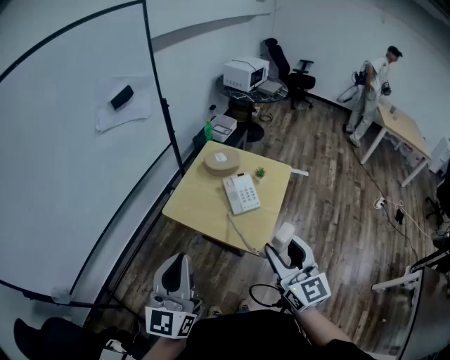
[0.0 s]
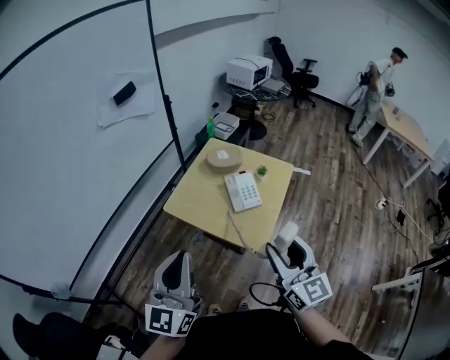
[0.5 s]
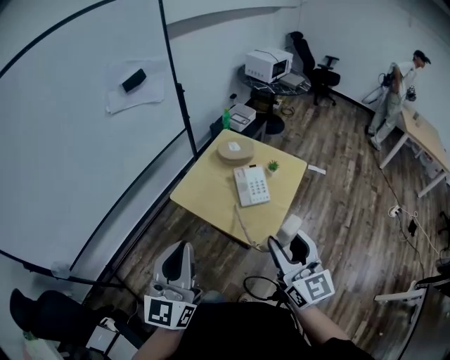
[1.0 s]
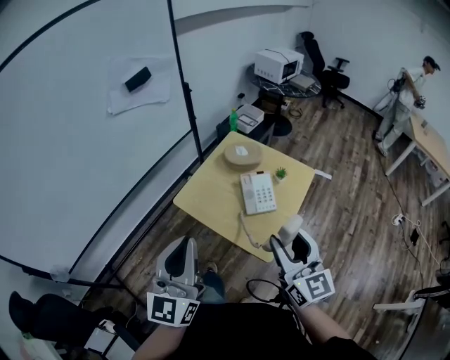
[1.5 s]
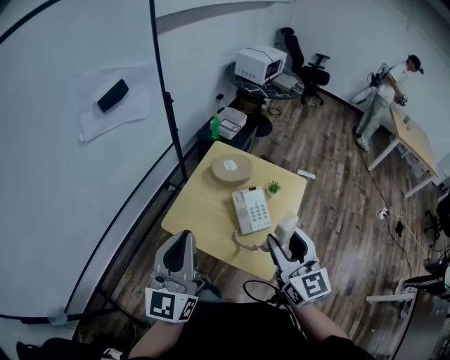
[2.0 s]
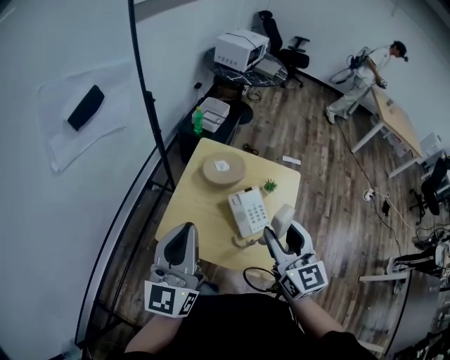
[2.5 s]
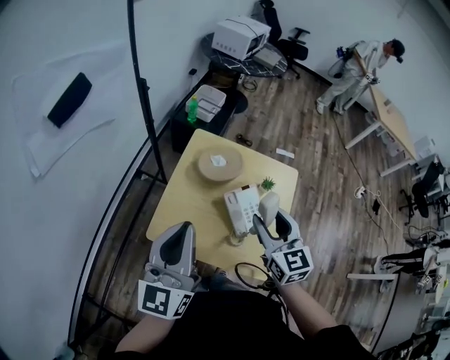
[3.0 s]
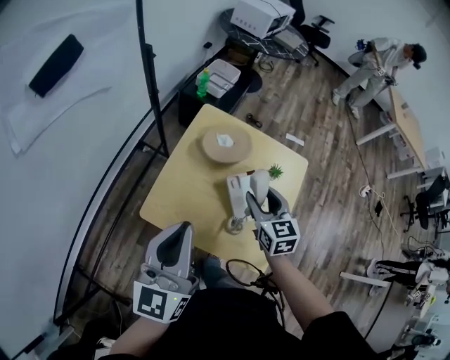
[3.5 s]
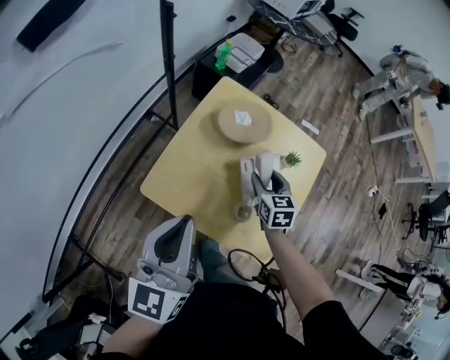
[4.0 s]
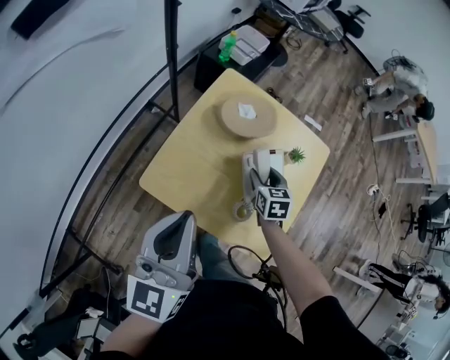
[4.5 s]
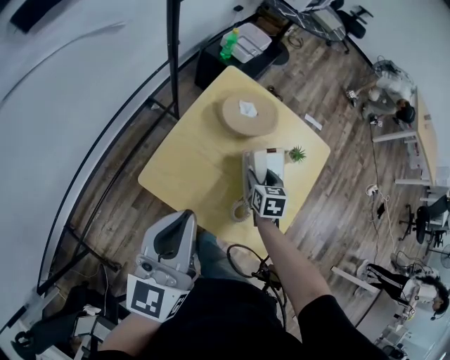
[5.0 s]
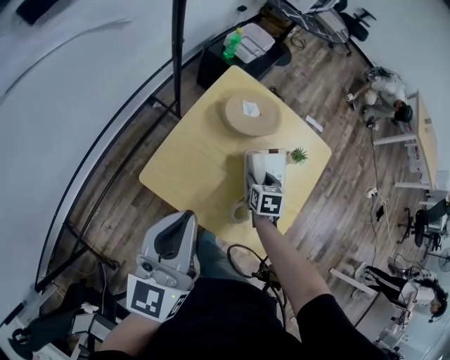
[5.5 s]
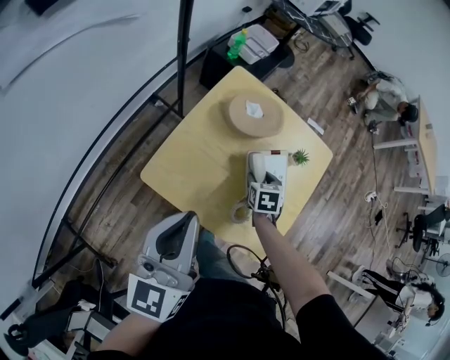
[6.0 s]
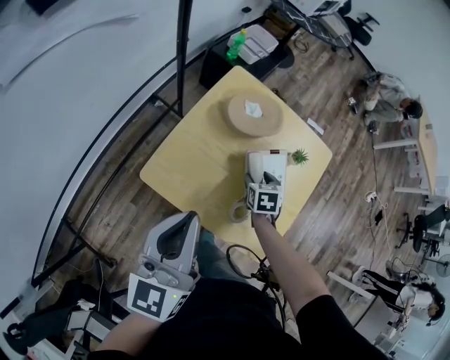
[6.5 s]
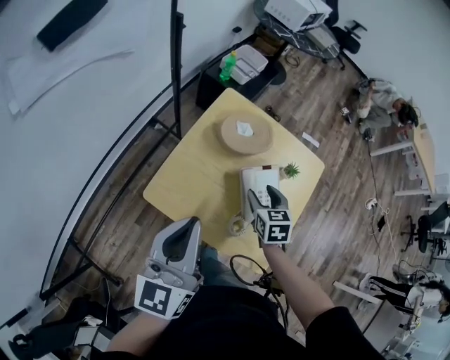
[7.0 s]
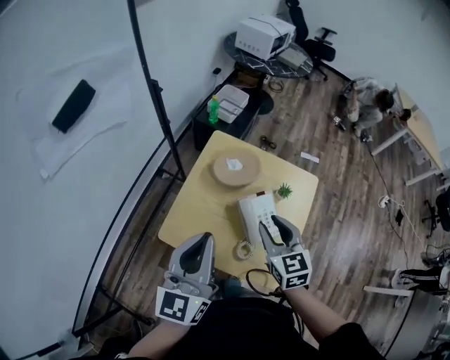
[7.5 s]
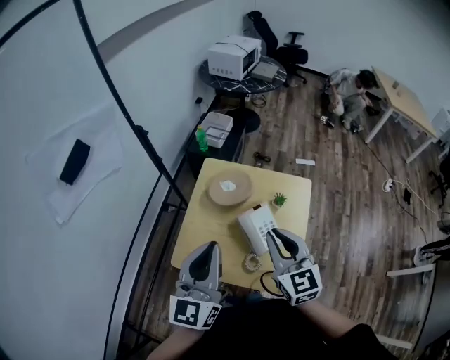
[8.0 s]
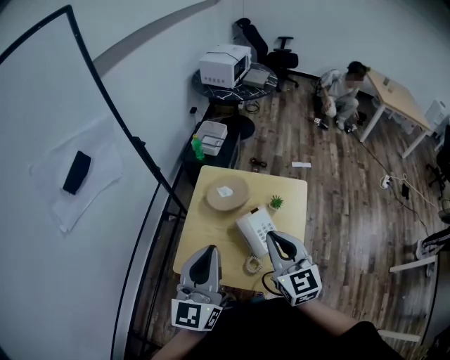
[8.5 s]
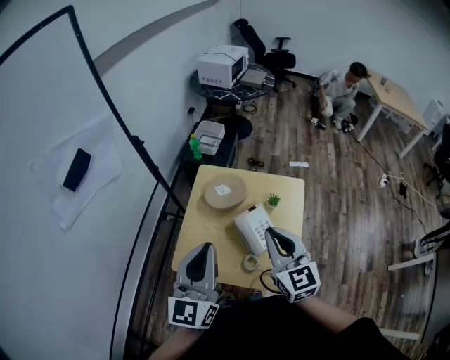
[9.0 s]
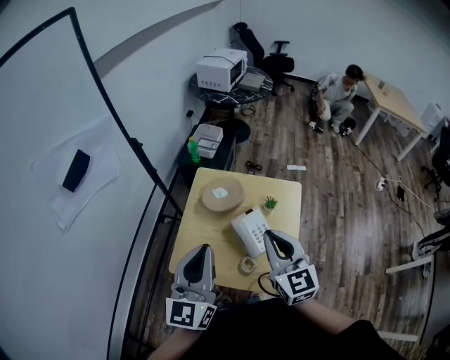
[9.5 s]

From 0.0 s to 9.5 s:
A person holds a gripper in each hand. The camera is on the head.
From 0.0 s to 2.0 s: The grippers both shift forward by some 20 cm.
From 2.0 s to 4.0 s: The left gripper heads downward and forward, covering approximately 20 cm; the right gripper travels downward and forward by about 40 cm, and tips its fingers downward by some 40 degrees.
From 4.0 s to 5.5 s: The right gripper travels downward by about 10 cm.
From 5.5 s to 7.5 s: The left gripper moves upward and to the right, some 10 cm. The right gripper heads upward, covering roughly 25 cm, and rotates approximately 30 degrees.
From 7.5 s to 9.5 s: The left gripper travels upward by some 5 cm. Meanwhile the right gripper travels upward by about 10 cm, turns by about 20 degrees, and closes its fingers.

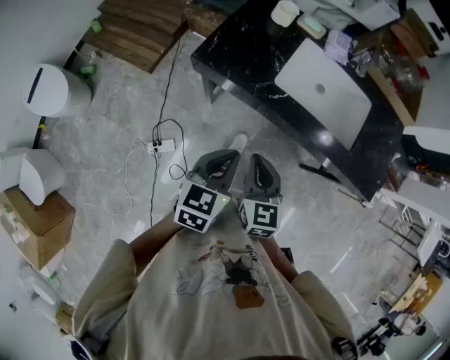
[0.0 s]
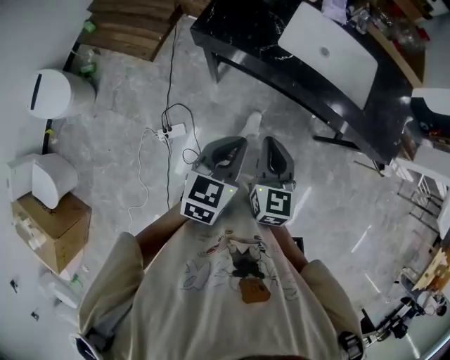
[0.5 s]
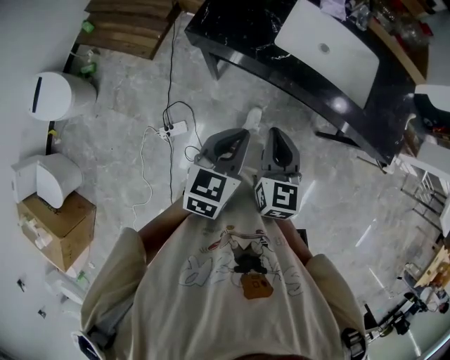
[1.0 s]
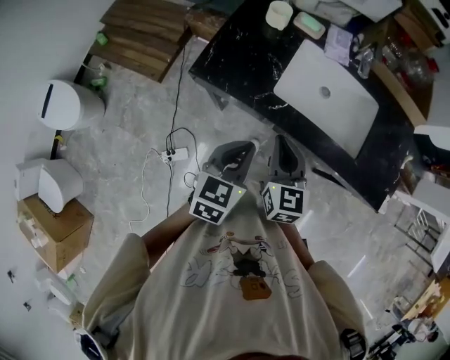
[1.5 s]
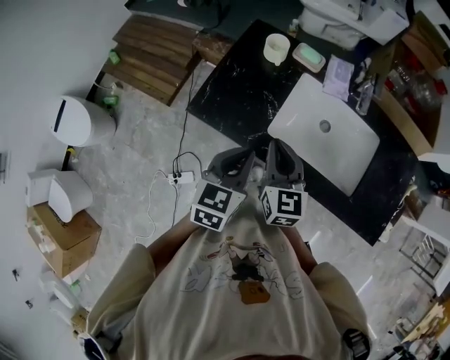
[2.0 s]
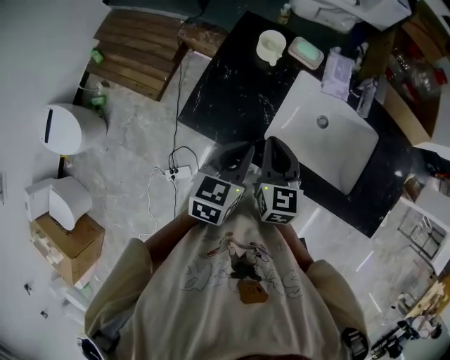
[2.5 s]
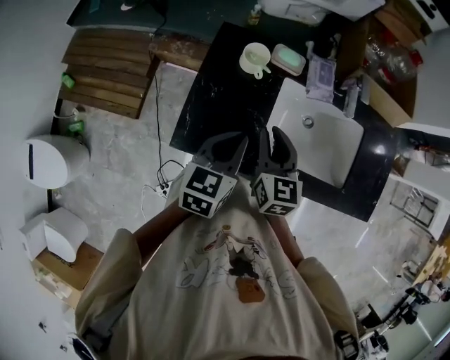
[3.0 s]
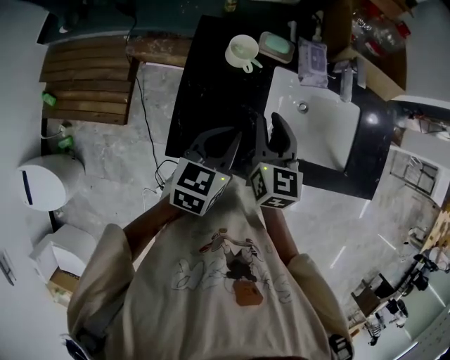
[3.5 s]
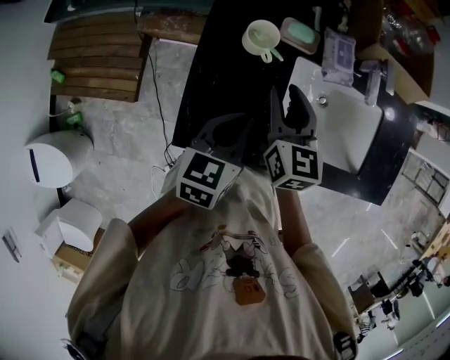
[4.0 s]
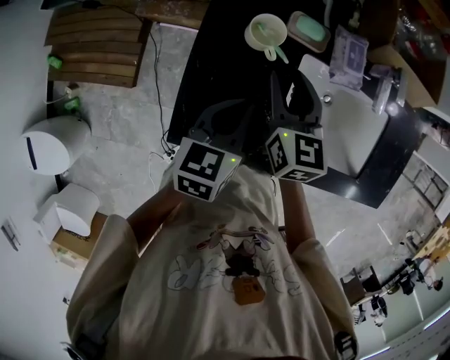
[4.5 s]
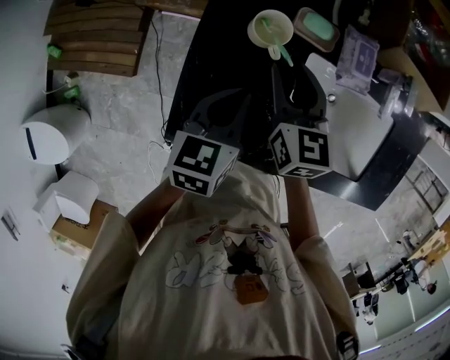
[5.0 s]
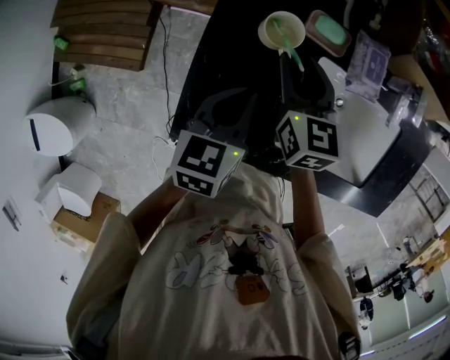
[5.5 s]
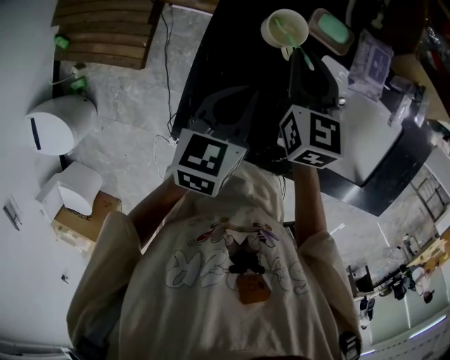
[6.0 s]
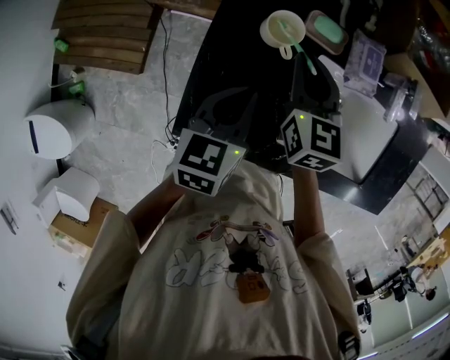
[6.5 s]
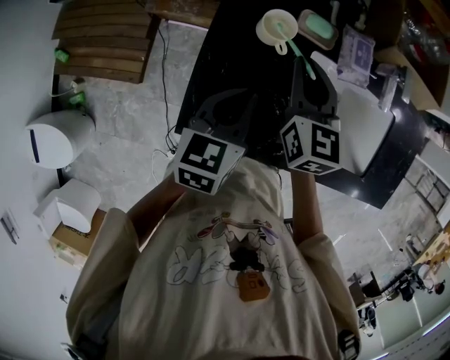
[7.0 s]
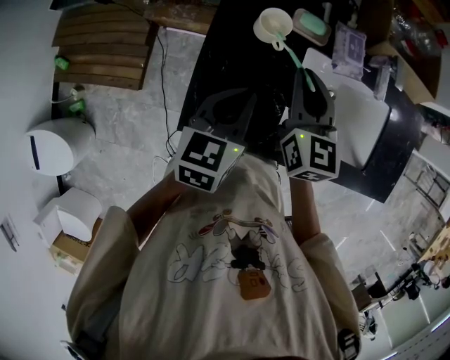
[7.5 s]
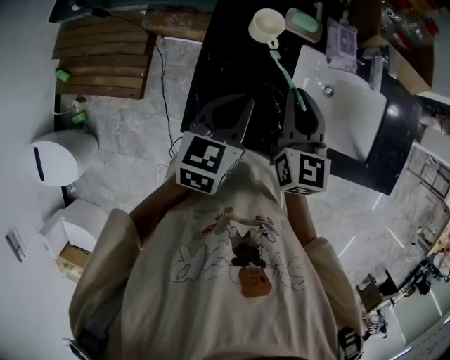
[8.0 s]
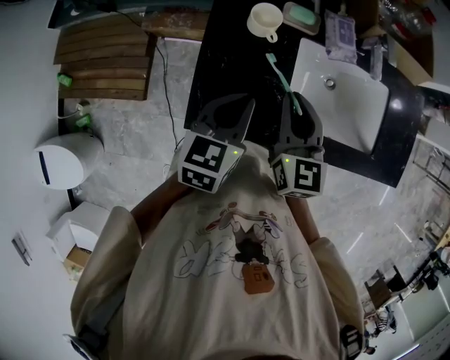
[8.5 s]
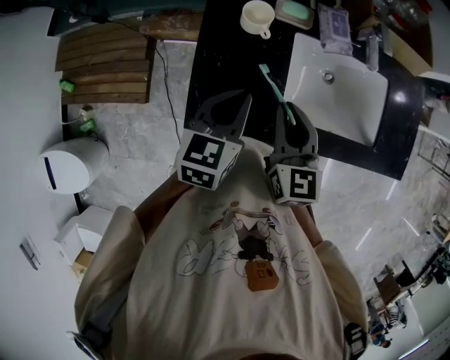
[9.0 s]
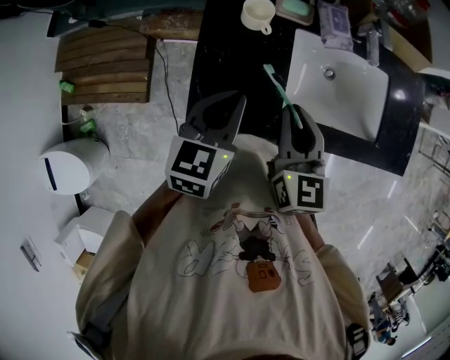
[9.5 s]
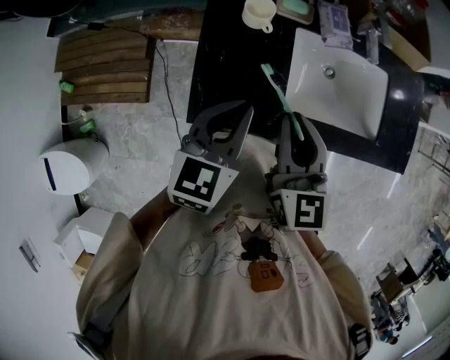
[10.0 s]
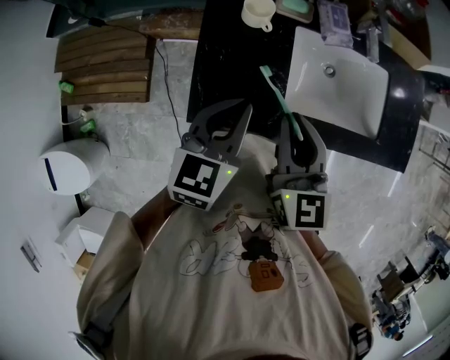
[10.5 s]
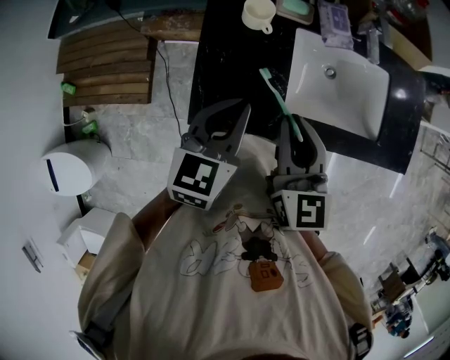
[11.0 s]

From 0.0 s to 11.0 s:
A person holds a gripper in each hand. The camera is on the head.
From 0.0 s to 2.0 s: The grippers both shift forward by approximately 25 cm.
From 2.0 s to 3.5 s: The right gripper moves approximately 20 cm, swivels some 30 degrees, and opens its fingers; the left gripper moves about 20 cm, and swivels roughly 30 degrees.
From 3.5 s to 5.5 s: Both grippers move forward and downward, approximately 15 cm.
From 5.5 s to 7.5 s: Both grippers move backward and upward, approximately 10 cm. The right gripper closes.
From 7.5 s to 9.0 s: The right gripper shifts roughly 10 cm backward.
From 9.0 s to 11.0 s: The left gripper ends up about 5 cm from where it was; the right gripper heads upward, covering approximately 5 cm.

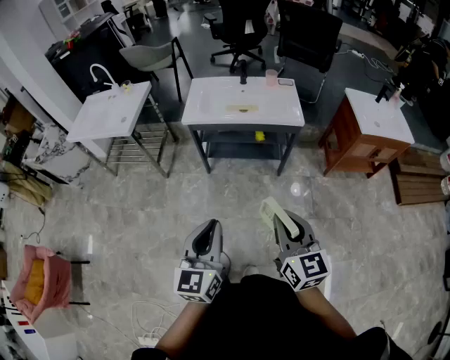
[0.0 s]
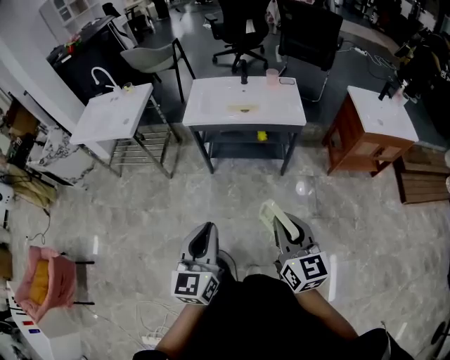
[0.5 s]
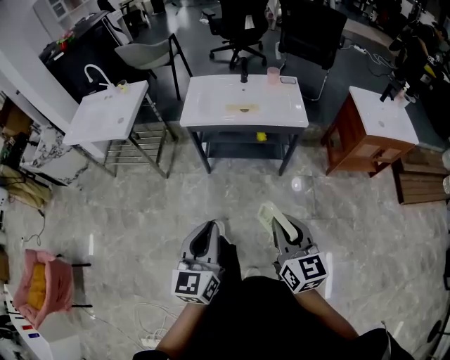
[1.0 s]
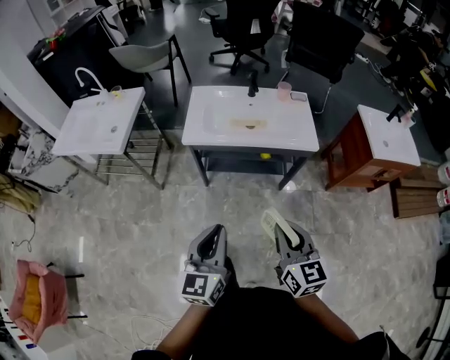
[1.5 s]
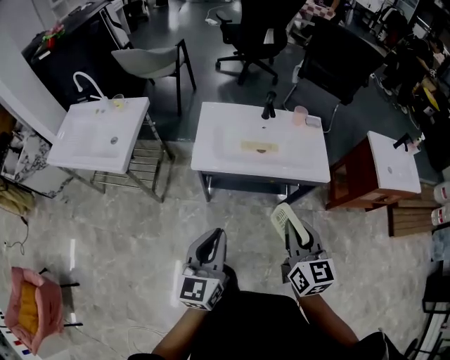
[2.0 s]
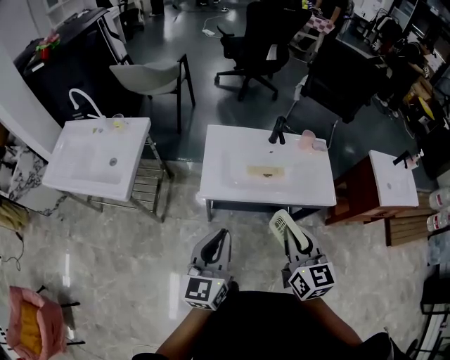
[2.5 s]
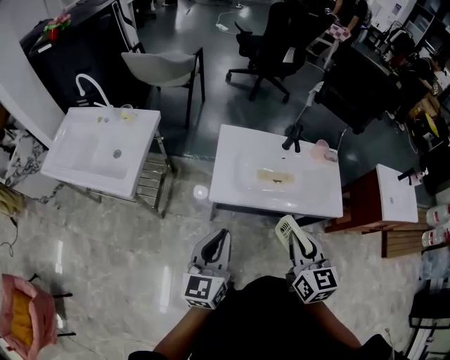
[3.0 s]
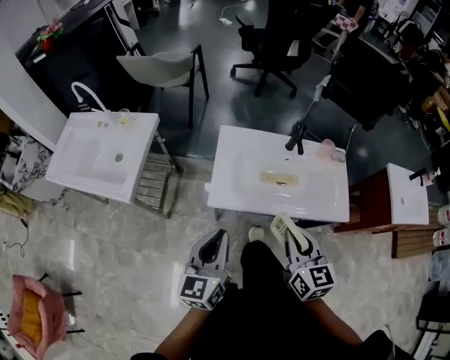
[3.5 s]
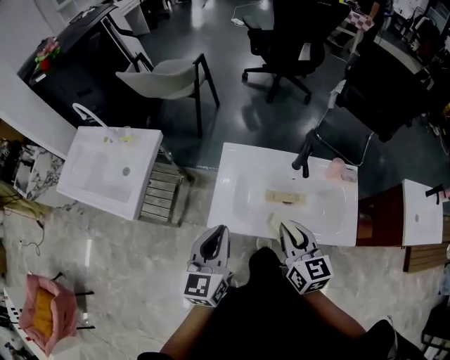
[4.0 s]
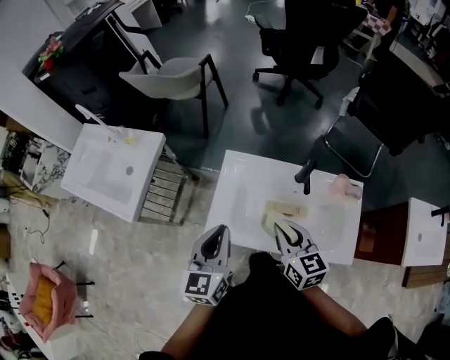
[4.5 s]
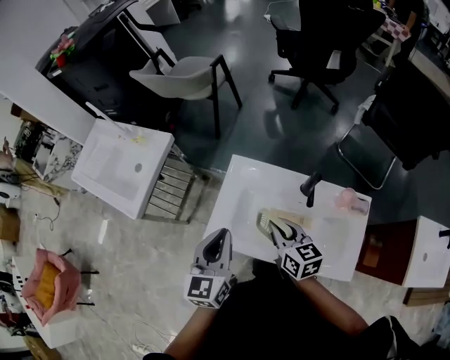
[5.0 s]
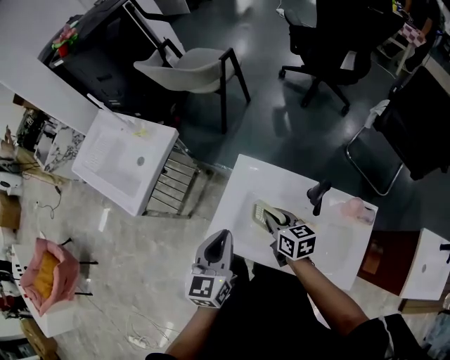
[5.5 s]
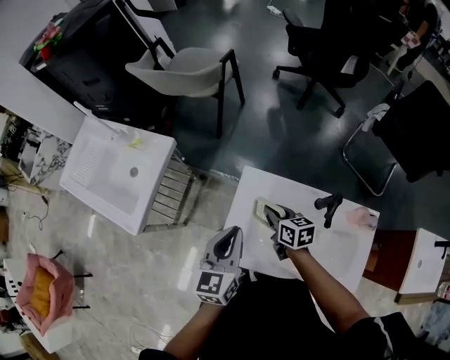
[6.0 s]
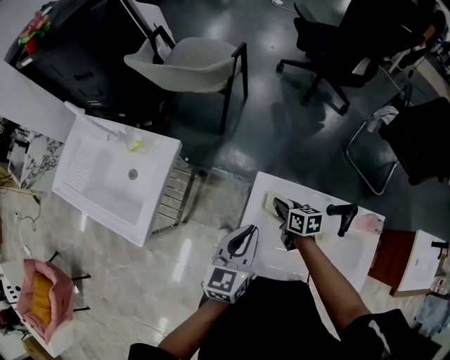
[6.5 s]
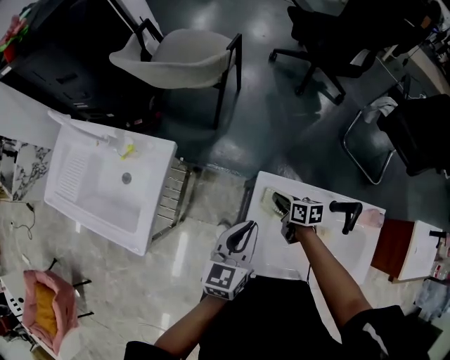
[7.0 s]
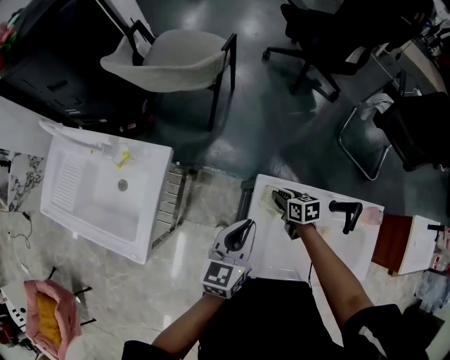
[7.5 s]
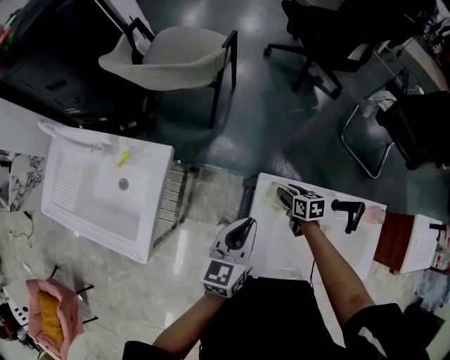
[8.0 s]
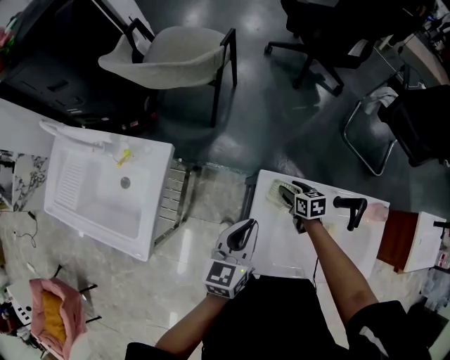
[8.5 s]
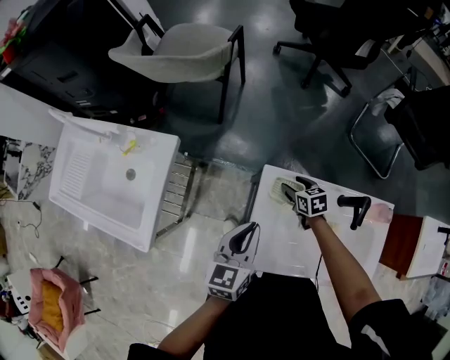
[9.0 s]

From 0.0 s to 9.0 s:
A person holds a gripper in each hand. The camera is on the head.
From 0.0 s to 2.0 s: The grippers both shift forward by about 35 cm.
From 2.0 s to 4.5 s: Both grippers move forward, approximately 40 cm. The right gripper swivels roughly 20 degrees.
From 4.5 s to 7.0 s: The right gripper travels forward and downward by some 40 cm, and changes its angle by about 40 degrees. Meanwhile the left gripper moves forward and downward, approximately 25 cm.
From 7.0 s to 9.0 s: The right gripper shifts by roughly 5 cm, changes its angle by approximately 20 degrees, and opens.
